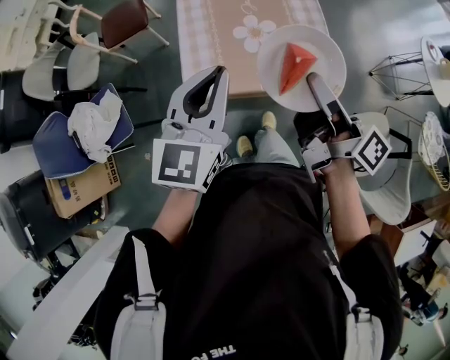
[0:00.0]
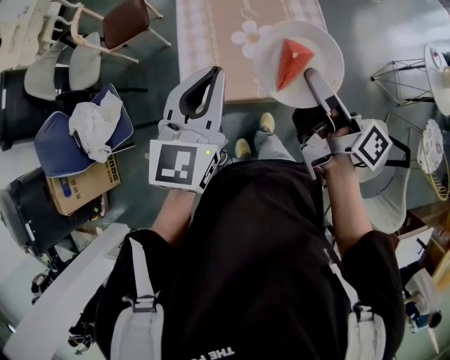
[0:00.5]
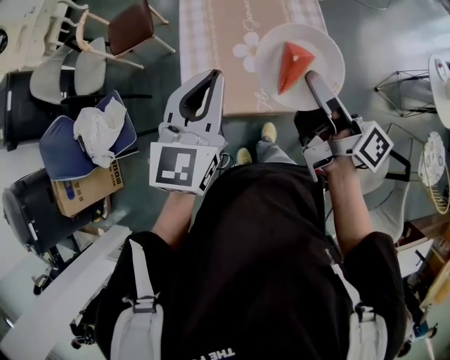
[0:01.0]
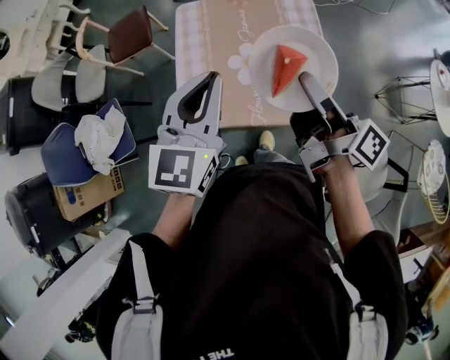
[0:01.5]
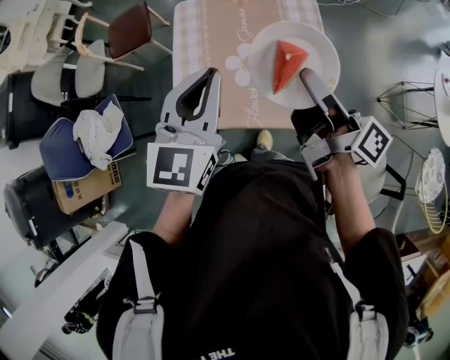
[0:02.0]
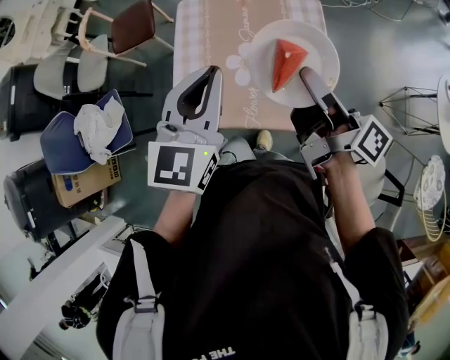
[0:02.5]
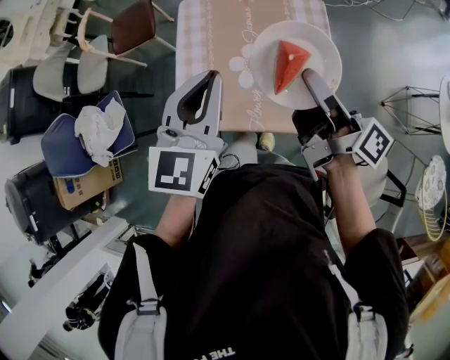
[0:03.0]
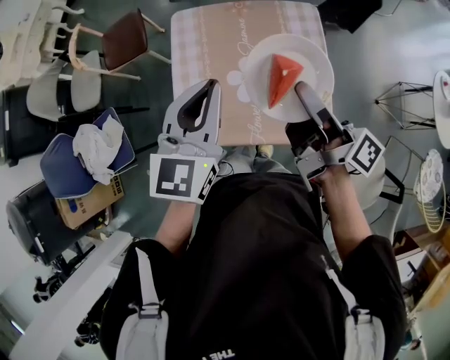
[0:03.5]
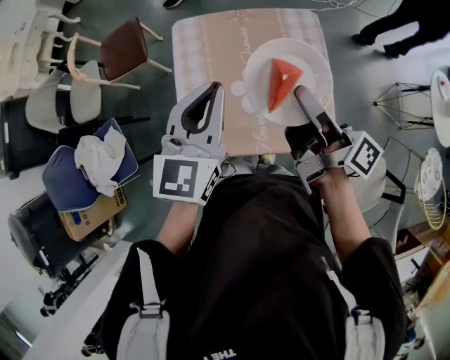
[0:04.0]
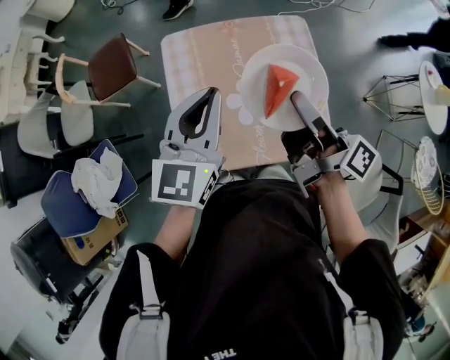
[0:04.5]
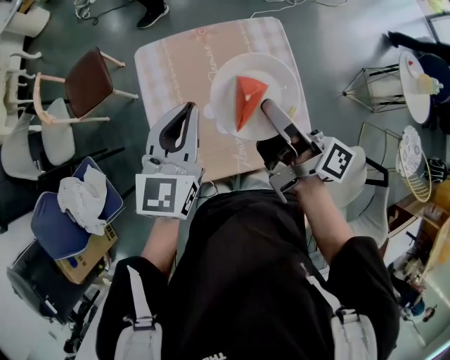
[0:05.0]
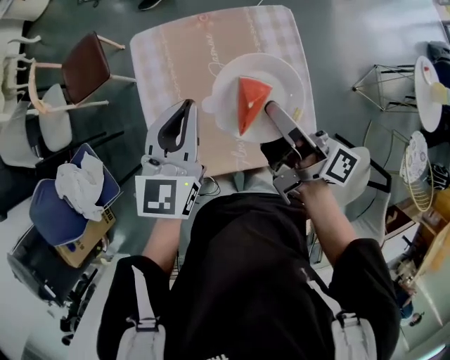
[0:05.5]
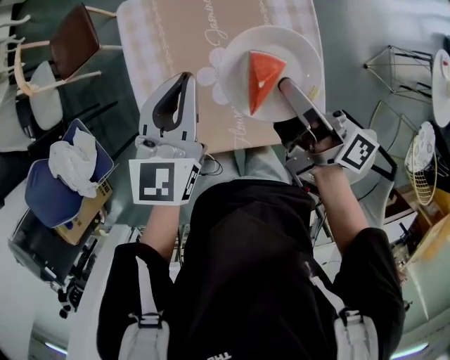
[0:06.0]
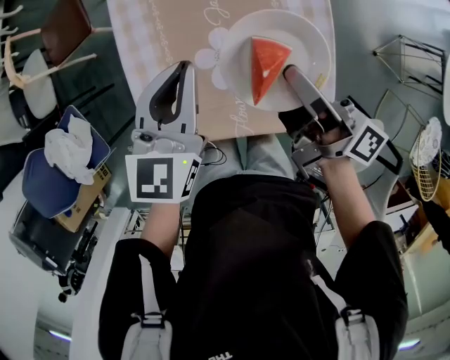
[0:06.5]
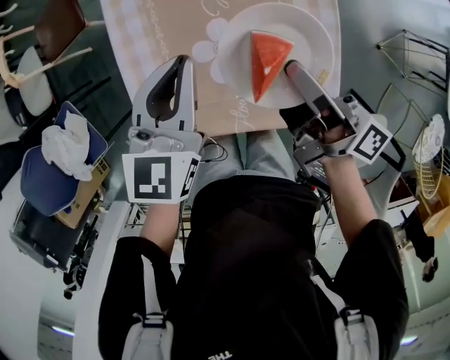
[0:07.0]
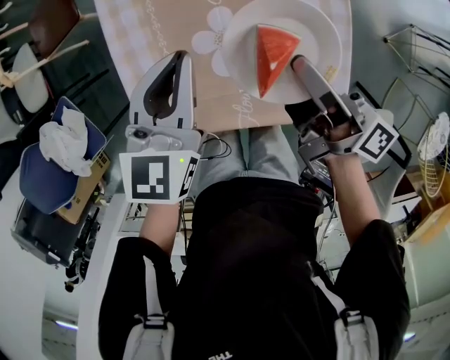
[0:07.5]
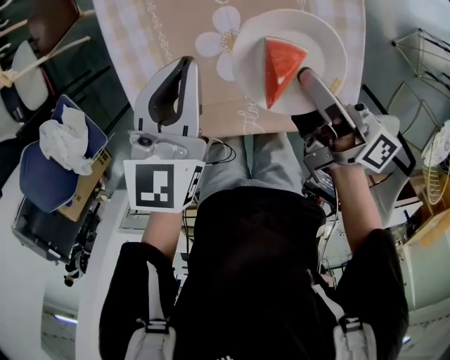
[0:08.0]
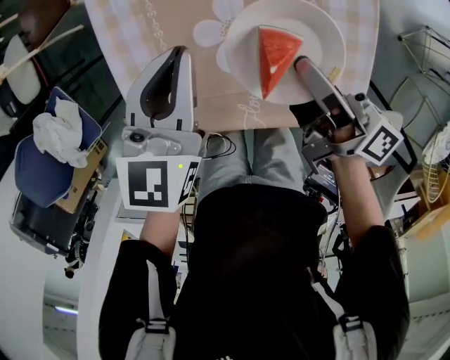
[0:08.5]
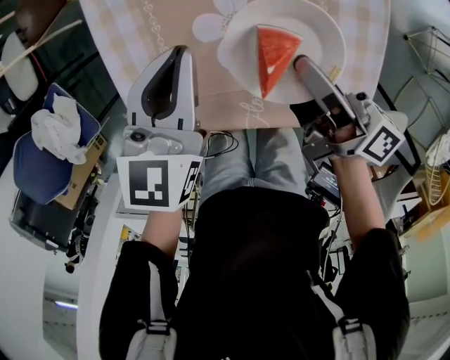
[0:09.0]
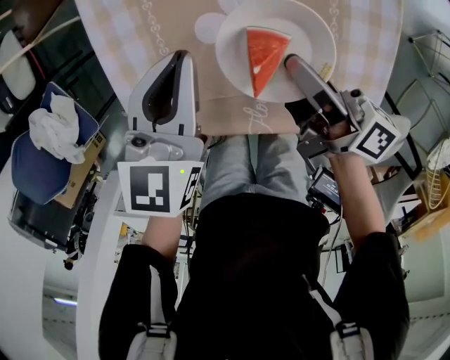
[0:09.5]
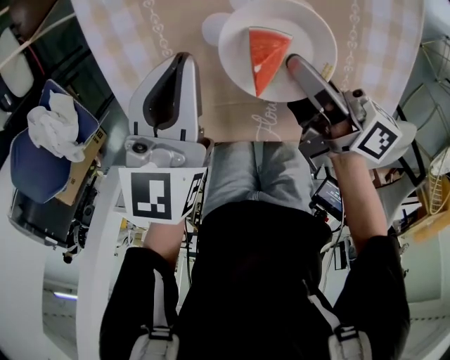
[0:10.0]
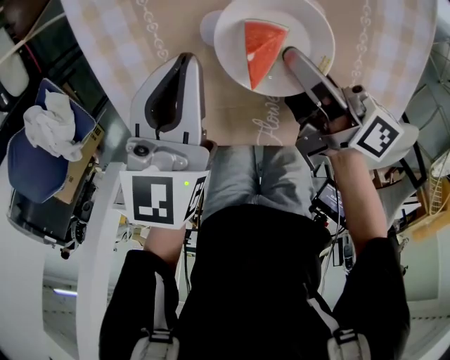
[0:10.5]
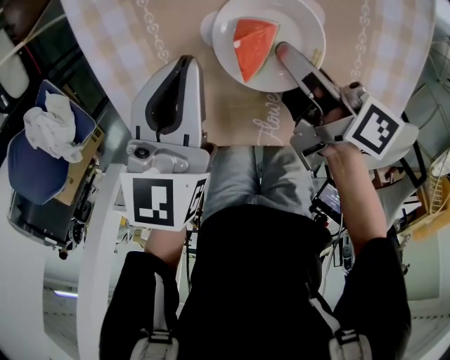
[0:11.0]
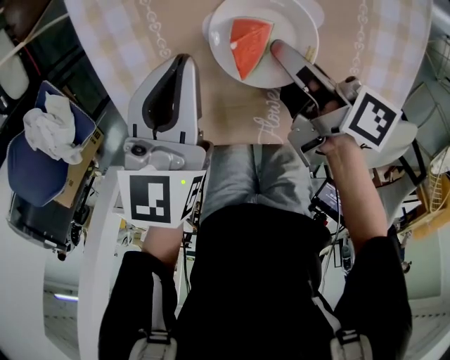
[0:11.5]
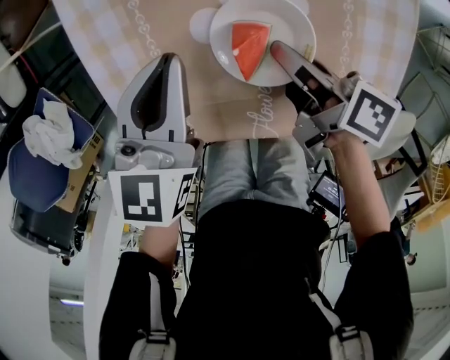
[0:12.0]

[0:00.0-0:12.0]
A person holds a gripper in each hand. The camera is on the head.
0:00.0 to 0:02.0: The grippers both shift forward and to the right by approximately 15 cm.
0:02.0 to 0:04.0: The grippers both shift forward by some 5 cm.
0:04.0 to 0:06.0: Both grippers travel together downward and forward, some 15 cm.
0:06.0 to 0:08.0: The grippers both shift downward by about 10 cm.
0:08.0 to 0:10.0: Both grippers move downward, approximately 10 cm.
0:10.0 to 0:12.0: The right gripper swivels about 20 degrees.

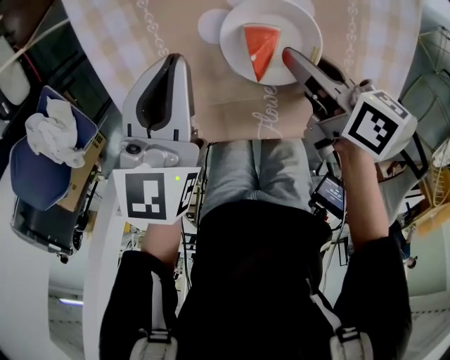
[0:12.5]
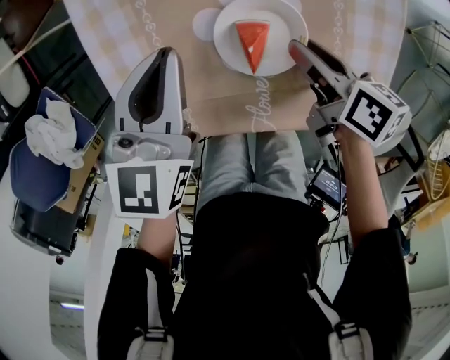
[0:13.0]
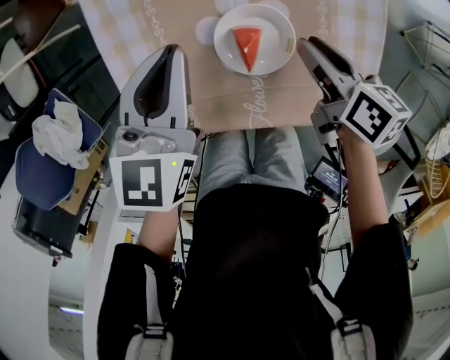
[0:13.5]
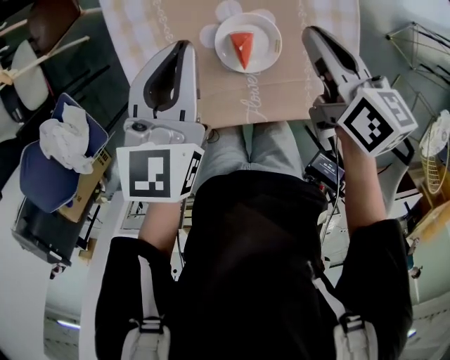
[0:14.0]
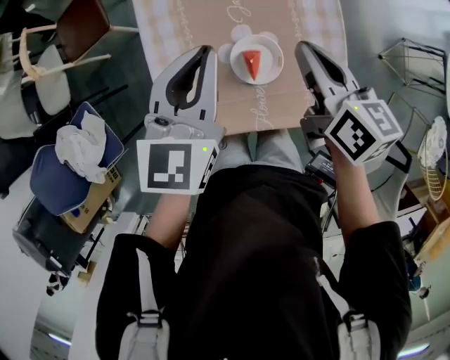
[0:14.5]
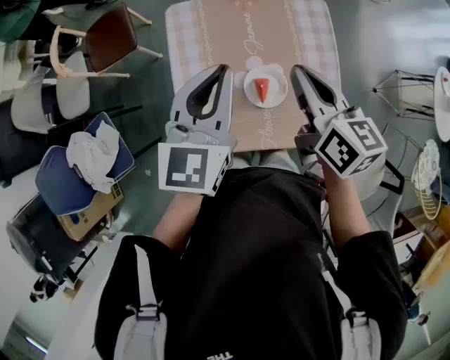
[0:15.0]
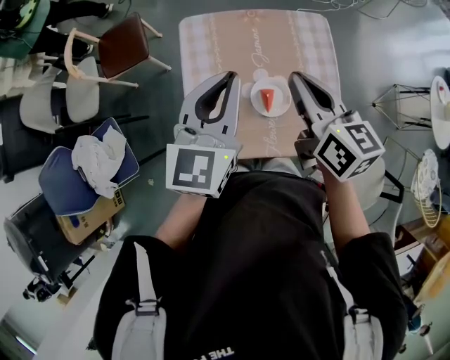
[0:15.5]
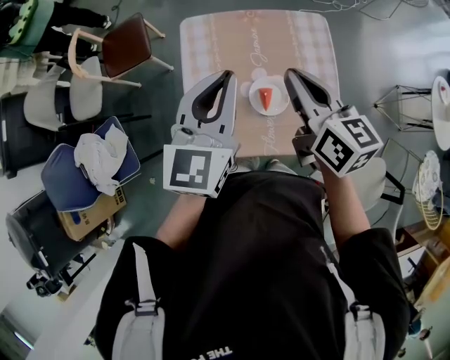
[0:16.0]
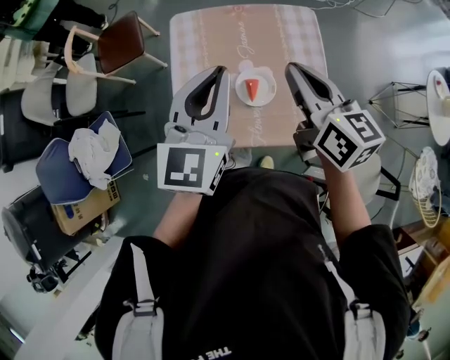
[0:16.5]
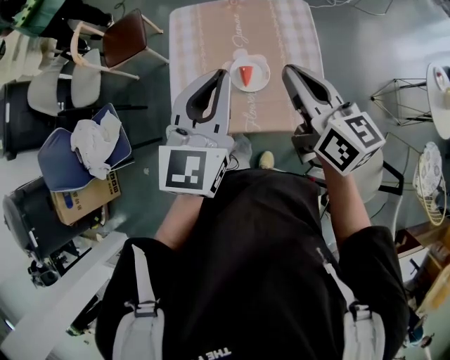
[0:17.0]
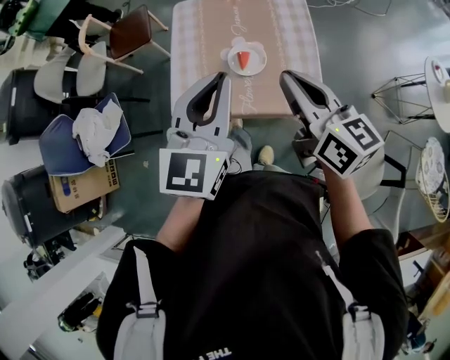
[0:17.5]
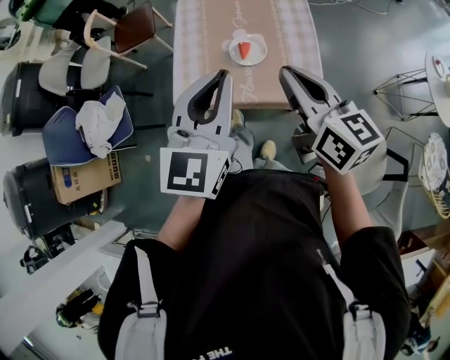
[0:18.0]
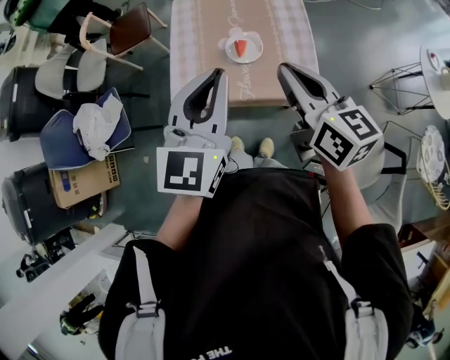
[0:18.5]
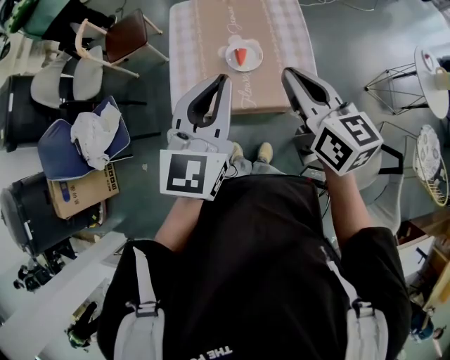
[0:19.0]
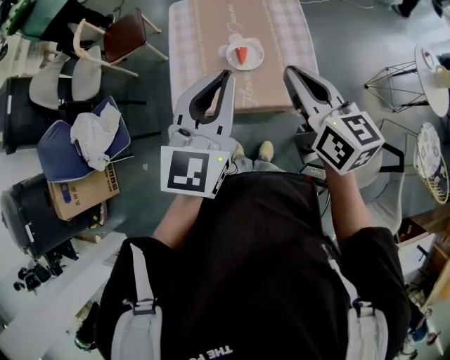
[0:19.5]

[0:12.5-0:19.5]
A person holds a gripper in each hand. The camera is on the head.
0:12.5 to 0:14.5: Both grippers move upward, approximately 25 cm. The right gripper rotates about 40 degrees, and closes.
0:14.5 to 0:16.0: The right gripper travels upward and to the left by approximately 15 cm. Meanwhile the left gripper shifts approximately 10 cm upward.
0:16.0 to 0:17.5: The two grippers go approximately 20 cm backward.
0:17.5 to 0:19.5: The grippers stay close to where they were, moving slightly.

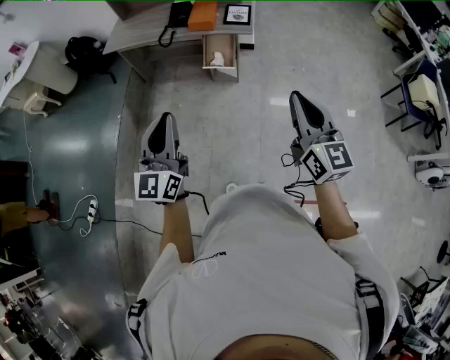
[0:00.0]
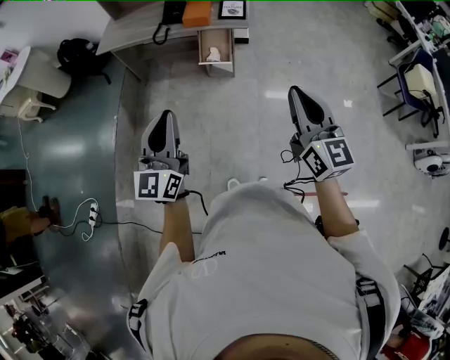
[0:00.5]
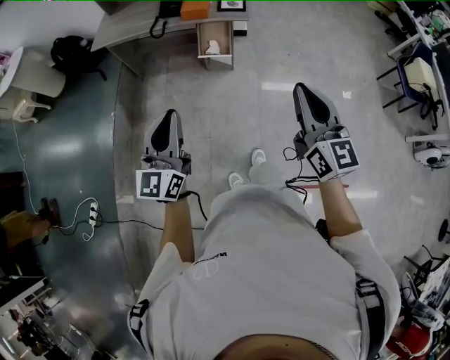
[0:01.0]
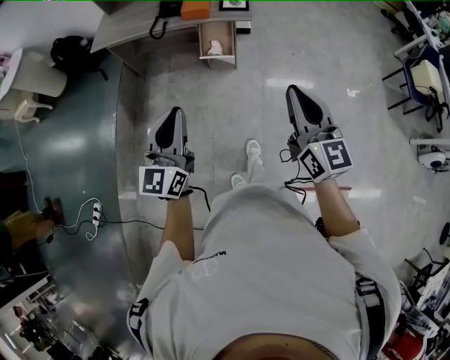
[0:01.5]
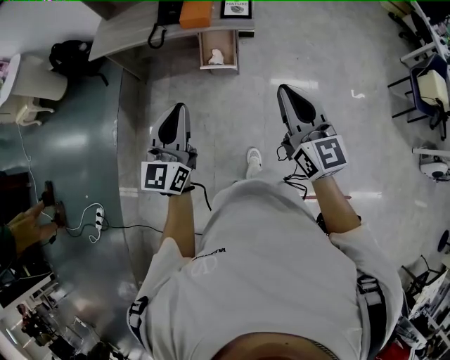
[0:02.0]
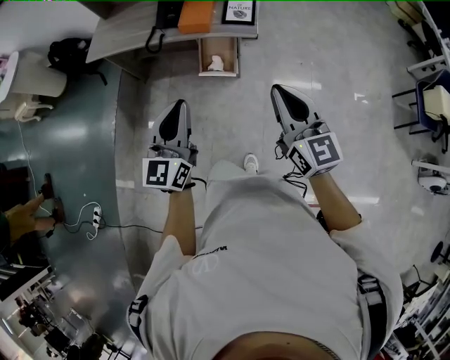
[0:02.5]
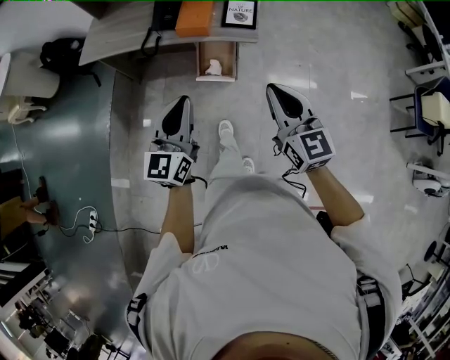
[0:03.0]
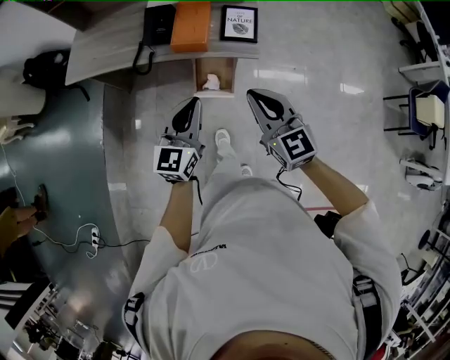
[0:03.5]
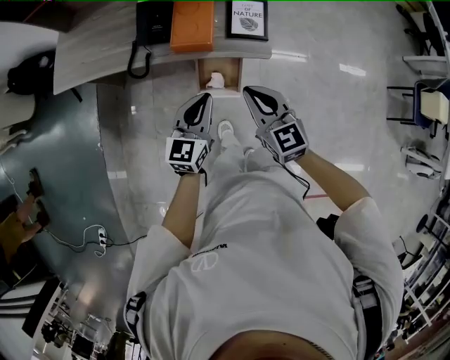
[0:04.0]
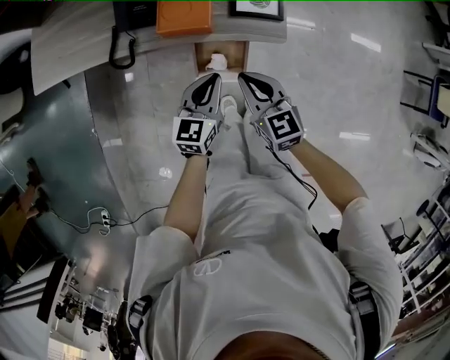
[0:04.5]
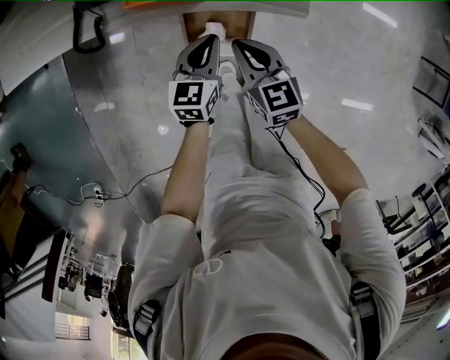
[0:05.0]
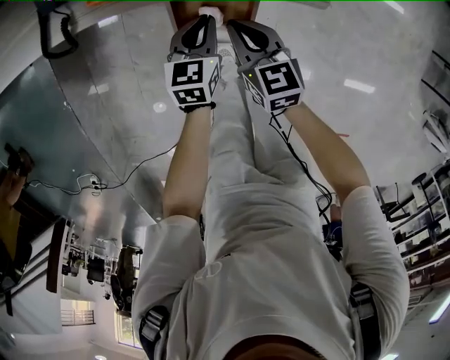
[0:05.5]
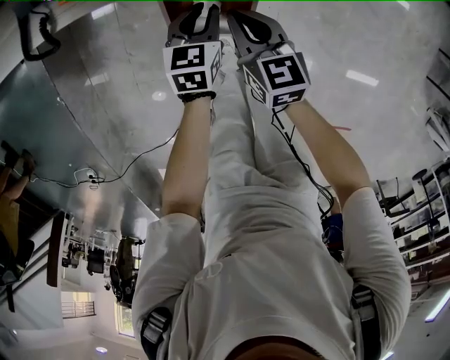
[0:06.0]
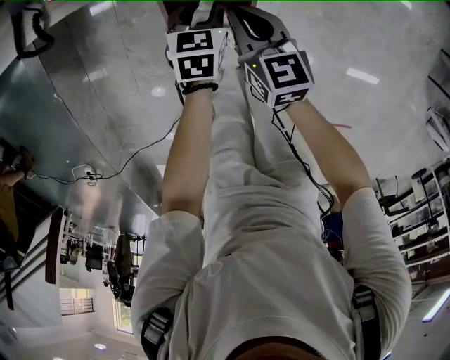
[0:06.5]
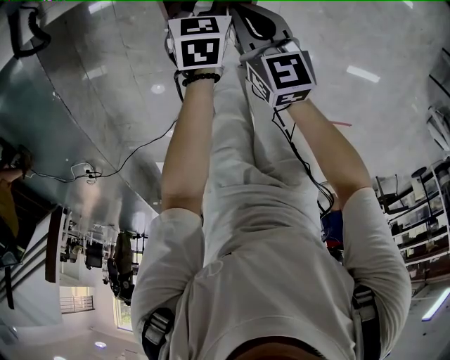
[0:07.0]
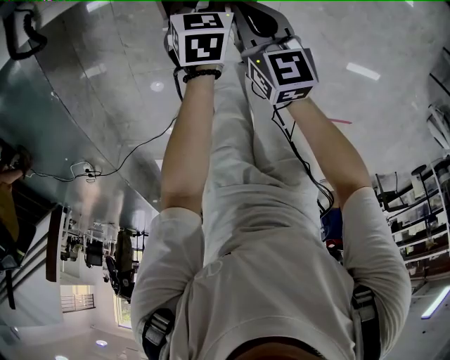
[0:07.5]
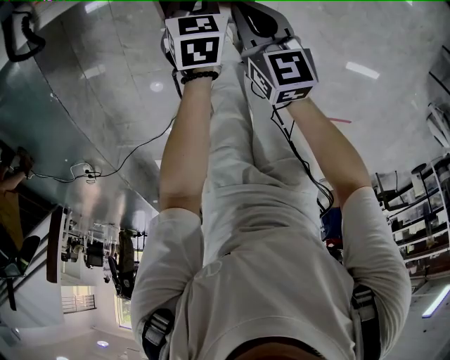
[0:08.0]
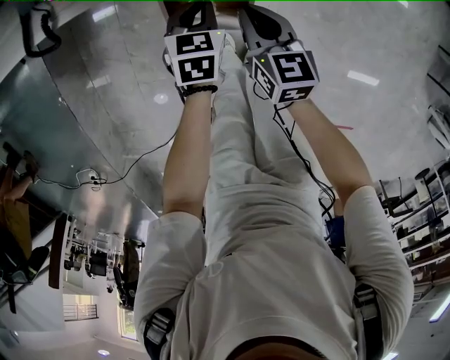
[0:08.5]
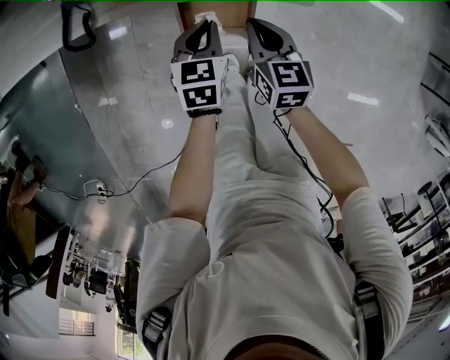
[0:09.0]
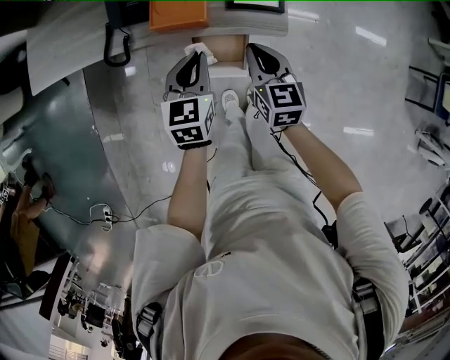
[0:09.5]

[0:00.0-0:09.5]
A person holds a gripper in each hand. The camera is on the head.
0:00.0 to 0:02.0: Both grippers move forward, approximately 15 cm.
0:02.0 to 0:04.0: The grippers both shift forward and downward by approximately 40 cm. The right gripper rotates about 20 degrees; the left gripper changes its angle by about 20 degrees.
0:04.0 to 0:05.5: Both grippers travel together downward, some 35 cm. The left gripper rotates about 30 degrees, while the right gripper changes its angle by some 20 degrees.
0:05.5 to 0:07.5: The left gripper shifts about 10 cm downward.
0:07.5 to 0:09.5: Both grippers travel together upward, about 30 cm. The left gripper changes its angle by about 30 degrees.
